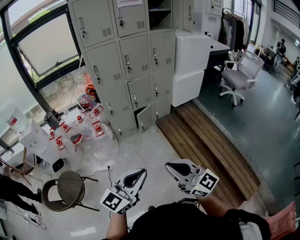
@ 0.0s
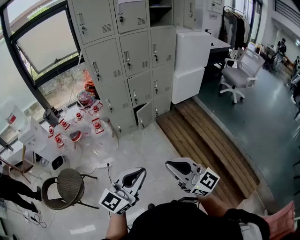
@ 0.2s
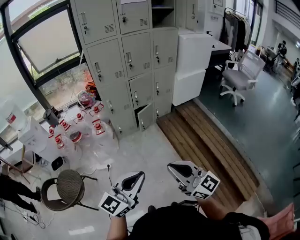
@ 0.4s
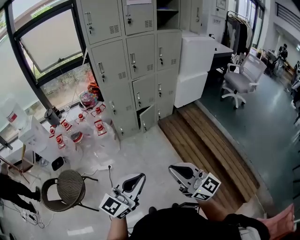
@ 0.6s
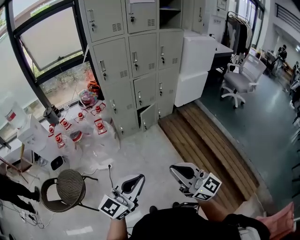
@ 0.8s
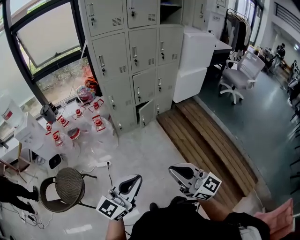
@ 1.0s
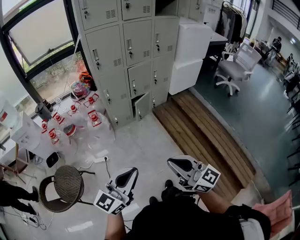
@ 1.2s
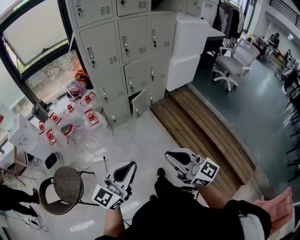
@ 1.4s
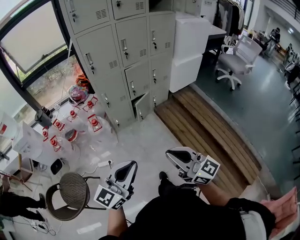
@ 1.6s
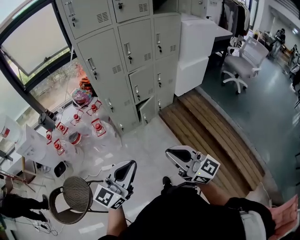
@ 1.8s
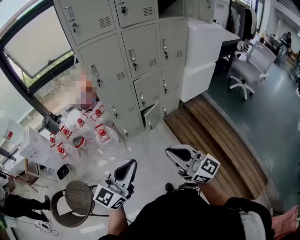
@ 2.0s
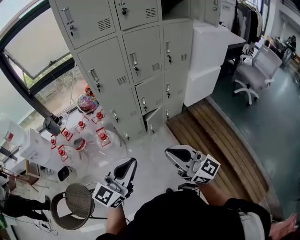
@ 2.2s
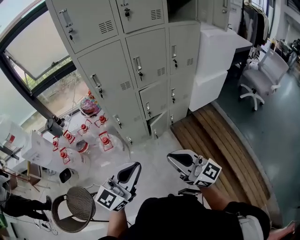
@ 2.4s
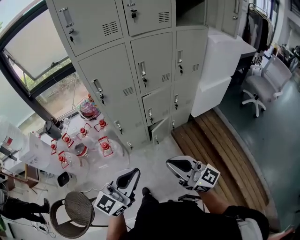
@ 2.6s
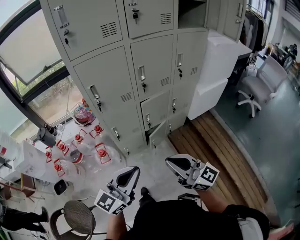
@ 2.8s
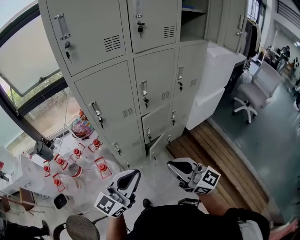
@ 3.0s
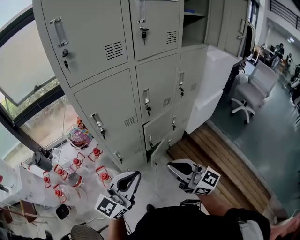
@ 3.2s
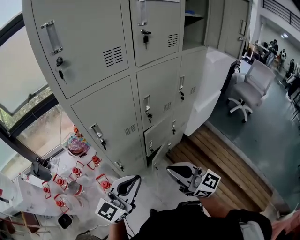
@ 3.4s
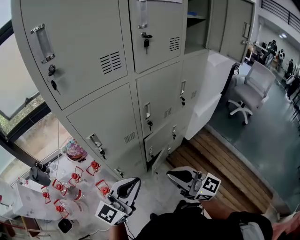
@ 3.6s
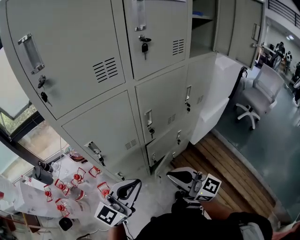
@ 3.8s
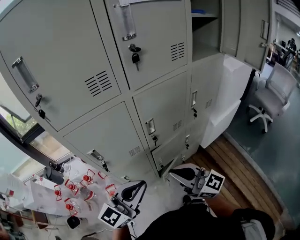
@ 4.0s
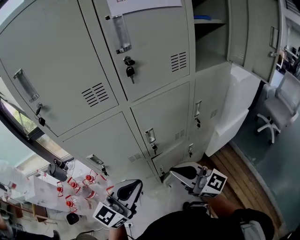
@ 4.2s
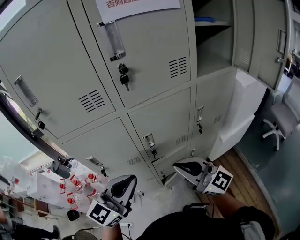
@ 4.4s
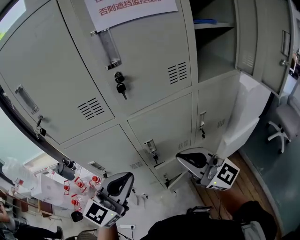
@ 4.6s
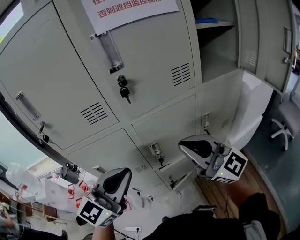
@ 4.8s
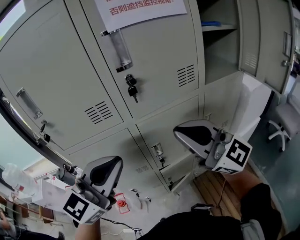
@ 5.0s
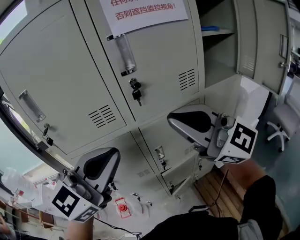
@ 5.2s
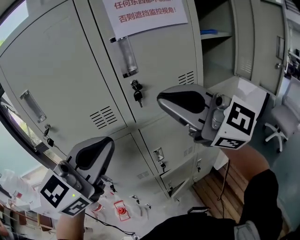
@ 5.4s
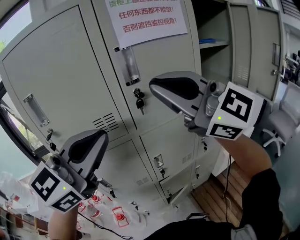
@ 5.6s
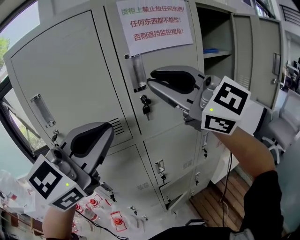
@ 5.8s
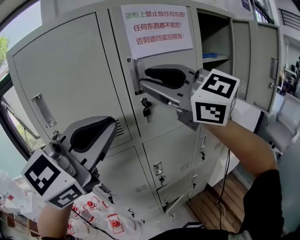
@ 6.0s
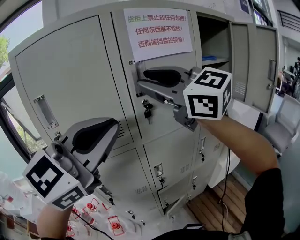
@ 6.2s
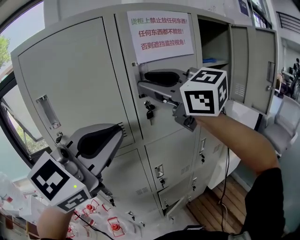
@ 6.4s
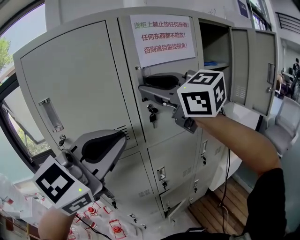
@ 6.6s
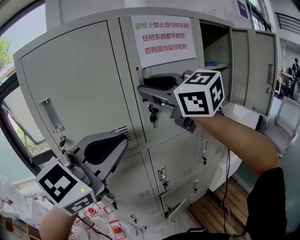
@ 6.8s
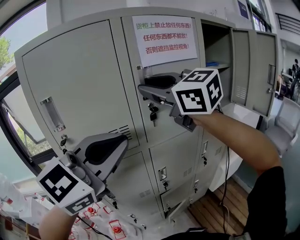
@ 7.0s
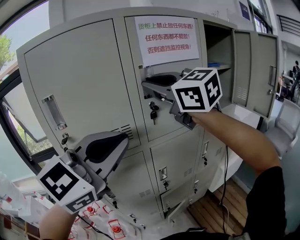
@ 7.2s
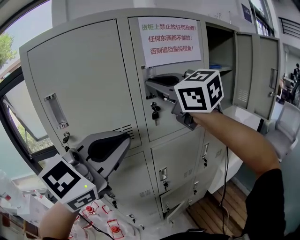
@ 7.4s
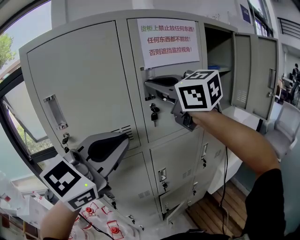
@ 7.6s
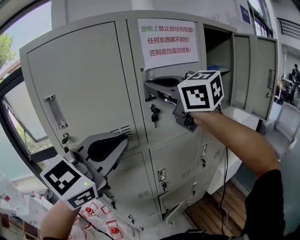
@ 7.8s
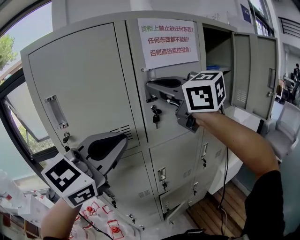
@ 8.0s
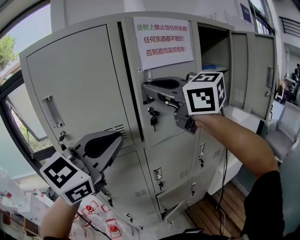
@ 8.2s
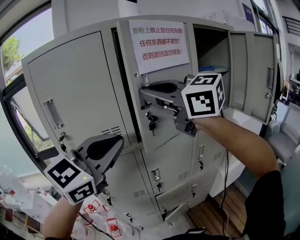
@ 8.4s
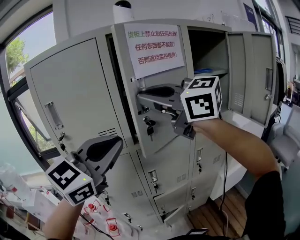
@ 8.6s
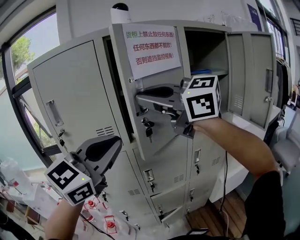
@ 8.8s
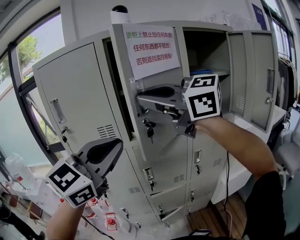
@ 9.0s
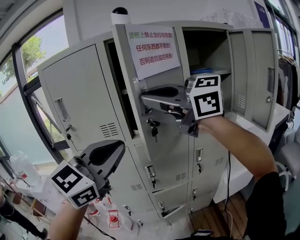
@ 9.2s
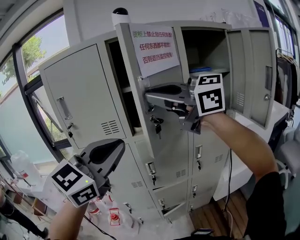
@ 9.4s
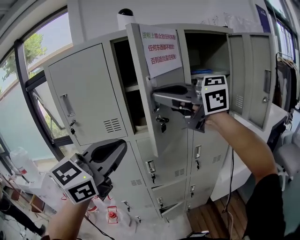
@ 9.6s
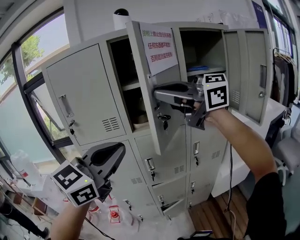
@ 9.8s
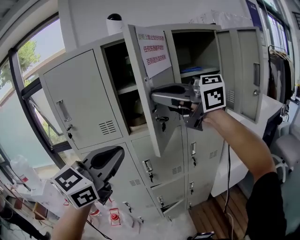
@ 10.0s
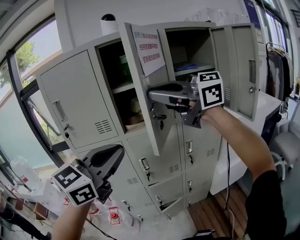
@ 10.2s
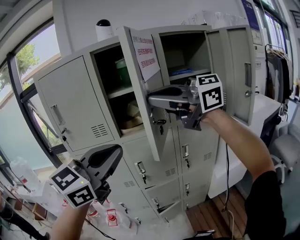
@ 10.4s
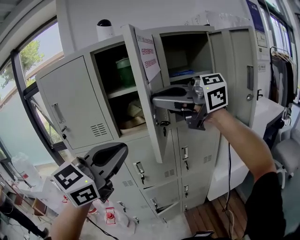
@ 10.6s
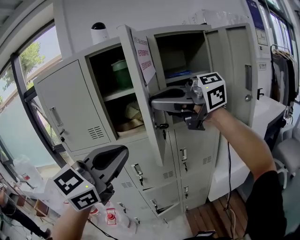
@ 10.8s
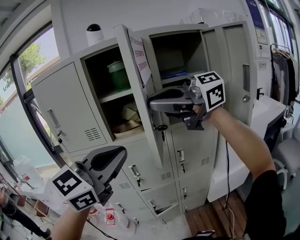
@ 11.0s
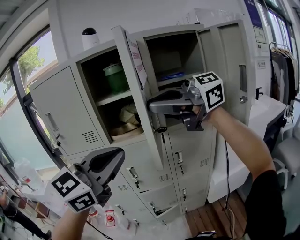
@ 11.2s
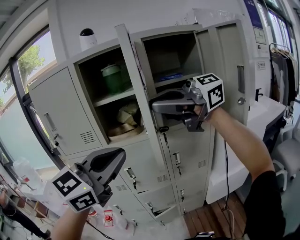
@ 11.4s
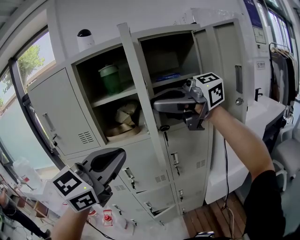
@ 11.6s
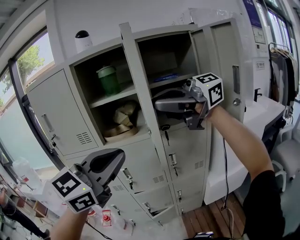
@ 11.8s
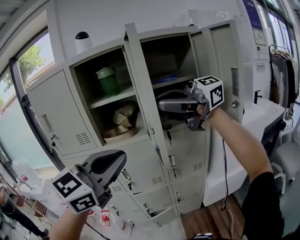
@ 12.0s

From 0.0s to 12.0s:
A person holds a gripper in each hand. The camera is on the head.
From 0.0s to 1.6s: The left gripper goes some 15 cm to the left and forward. The right gripper is displaced forward and to the left by roughly 15 cm.
From 1.6s to 3.0s: The two grippers travel together, forward, some 40 cm.
From 3.0s to 4.4s: The two grippers go some 25 cm forward.
From 4.4s to 6.0s: The grippers both shift upward by about 30 cm. The left gripper changes its angle by some 20 degrees; the right gripper turns by about 20 degrees, and opens up.
From 6.0s to 7.6s: The right gripper shifts approximately 5 cm forward.
From 7.6s to 9.0s: The left gripper travels to the right and backward by about 10 cm. The right gripper is displaced backward and to the right by about 15 cm, and changes its angle by some 30 degrees.
From 9.0s to 10.4s: The right gripper shifts by approximately 10 cm. Meanwhile the left gripper ends up roughly 10 cm from where it was.
From 10.4s to 12.0s: The right gripper ends up about 15 cm from where it was, and swivels roughly 20 degrees; the left gripper shifts by some 15 cm.

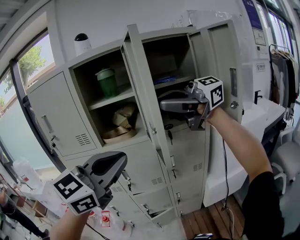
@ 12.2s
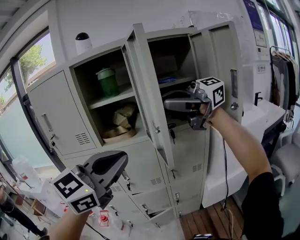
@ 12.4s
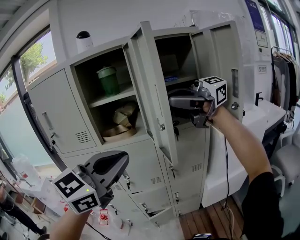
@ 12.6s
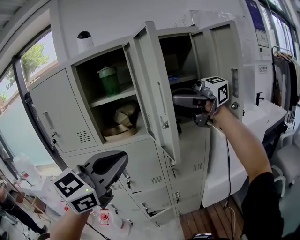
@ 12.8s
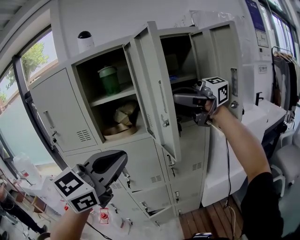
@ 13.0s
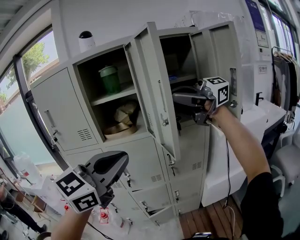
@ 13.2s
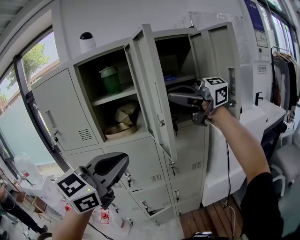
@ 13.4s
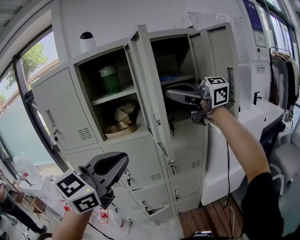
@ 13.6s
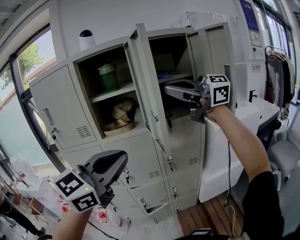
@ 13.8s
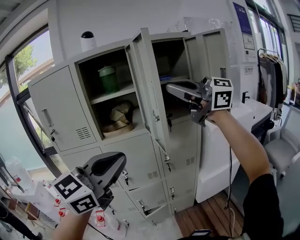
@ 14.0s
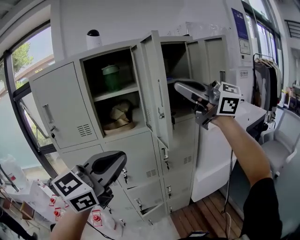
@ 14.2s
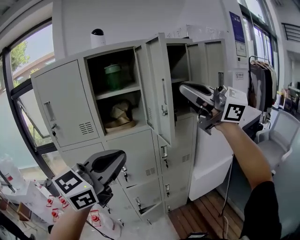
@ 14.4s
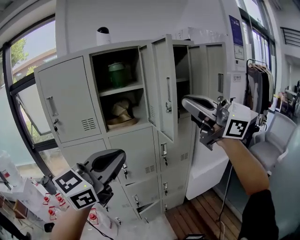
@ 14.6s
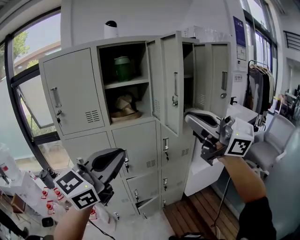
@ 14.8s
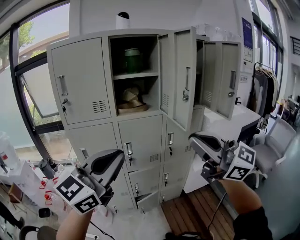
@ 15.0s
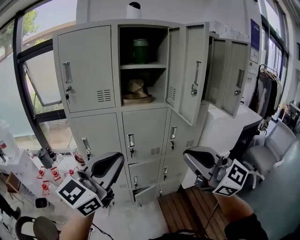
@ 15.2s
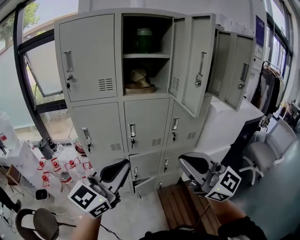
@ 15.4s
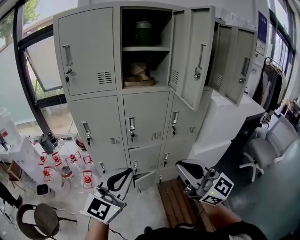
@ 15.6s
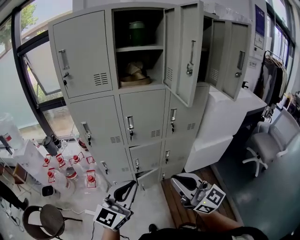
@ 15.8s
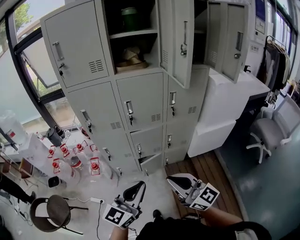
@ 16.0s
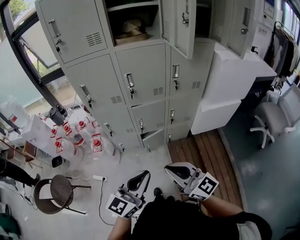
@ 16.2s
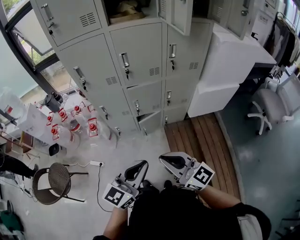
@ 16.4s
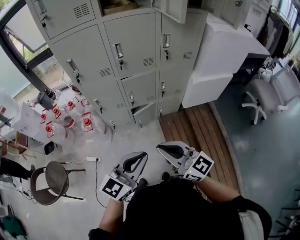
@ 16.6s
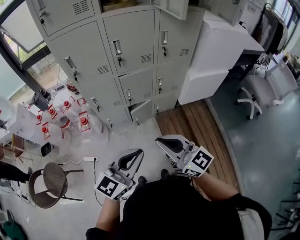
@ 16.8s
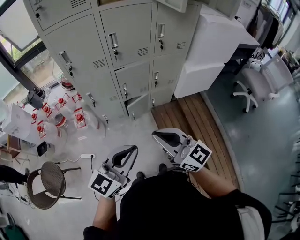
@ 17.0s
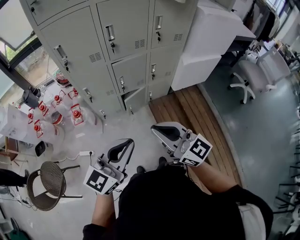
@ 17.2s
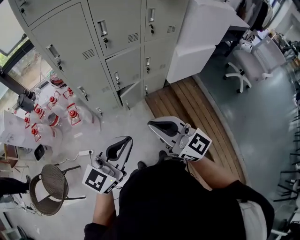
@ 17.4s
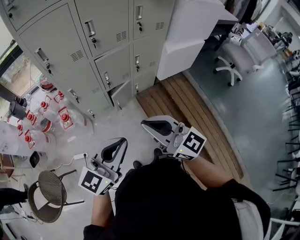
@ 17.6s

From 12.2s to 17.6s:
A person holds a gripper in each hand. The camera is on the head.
From 12.2s to 13.6s: There are only small adjustments of the grippers.
From 13.6s to 15.0s: The right gripper shifts by approximately 25 cm, and changes its angle by roughly 40 degrees. Meanwhile the left gripper moves some 20 cm.
From 15.0s to 16.2s: The right gripper is displaced downward by roughly 35 cm; the left gripper moves downward and backward, some 35 cm, and swivels about 20 degrees.
From 16.2s to 17.6s: The left gripper heads to the left and backward, covering some 10 cm. The right gripper shifts roughly 10 cm to the left.

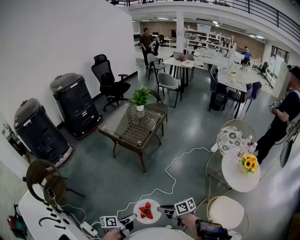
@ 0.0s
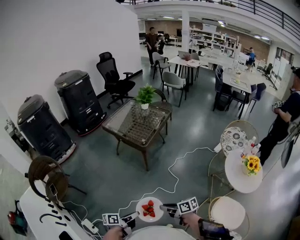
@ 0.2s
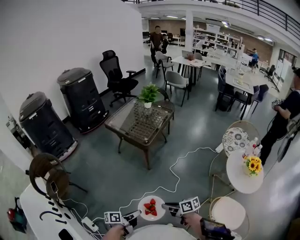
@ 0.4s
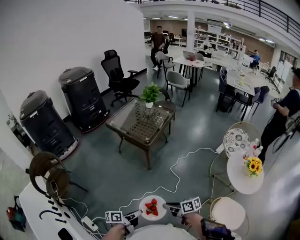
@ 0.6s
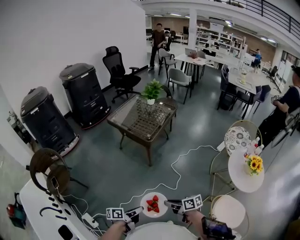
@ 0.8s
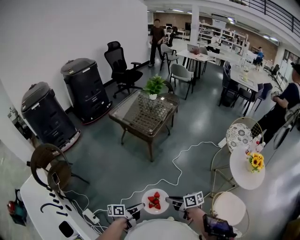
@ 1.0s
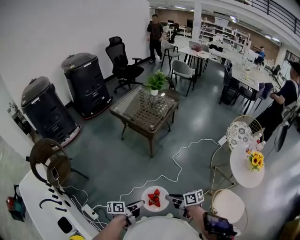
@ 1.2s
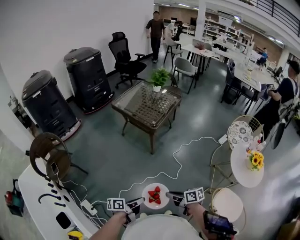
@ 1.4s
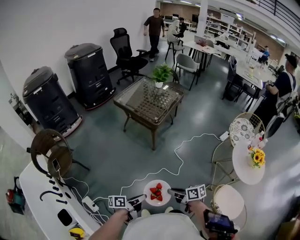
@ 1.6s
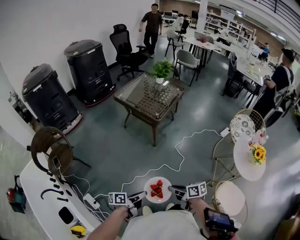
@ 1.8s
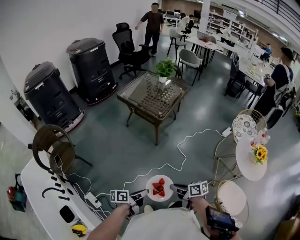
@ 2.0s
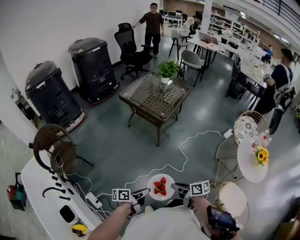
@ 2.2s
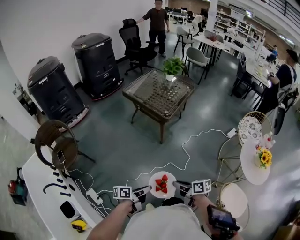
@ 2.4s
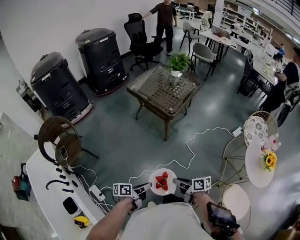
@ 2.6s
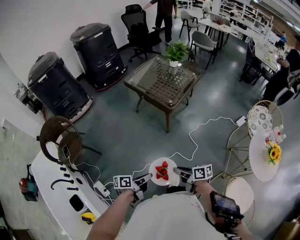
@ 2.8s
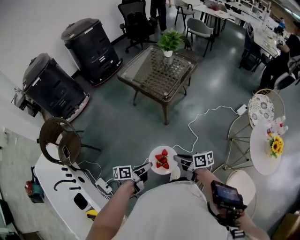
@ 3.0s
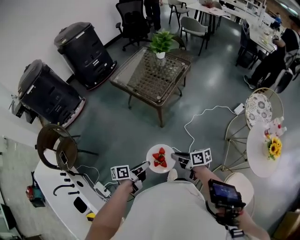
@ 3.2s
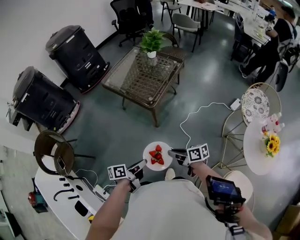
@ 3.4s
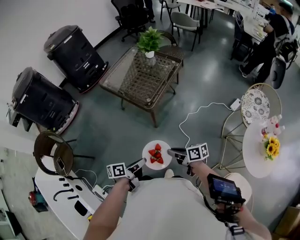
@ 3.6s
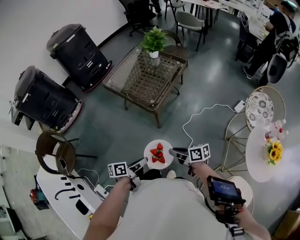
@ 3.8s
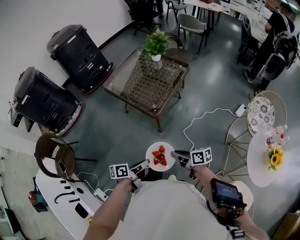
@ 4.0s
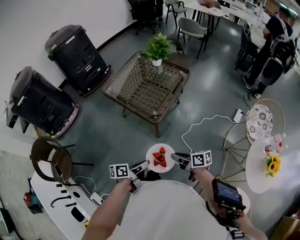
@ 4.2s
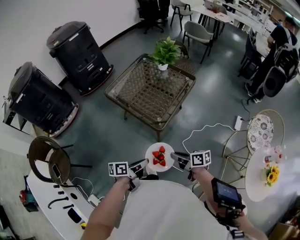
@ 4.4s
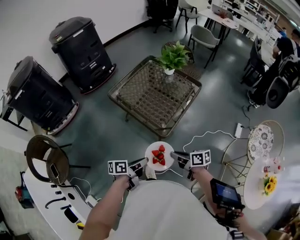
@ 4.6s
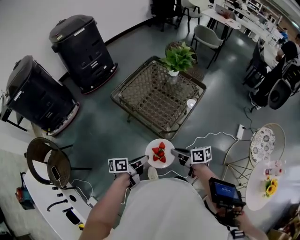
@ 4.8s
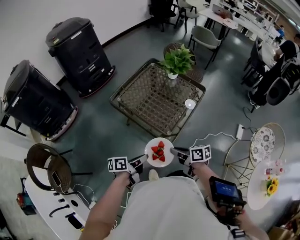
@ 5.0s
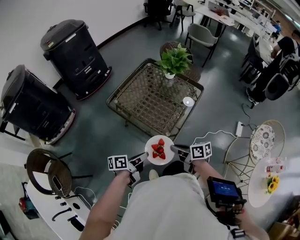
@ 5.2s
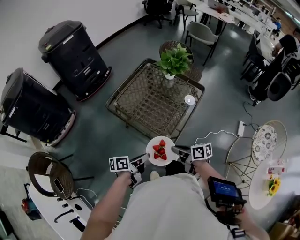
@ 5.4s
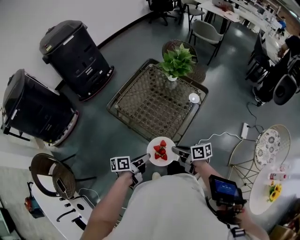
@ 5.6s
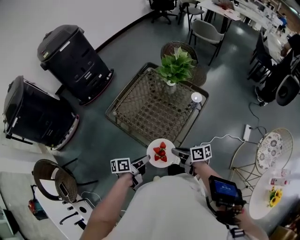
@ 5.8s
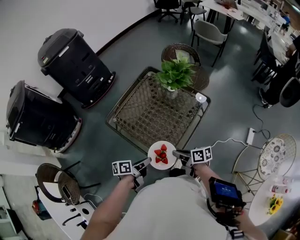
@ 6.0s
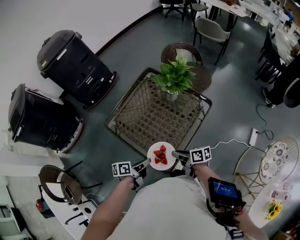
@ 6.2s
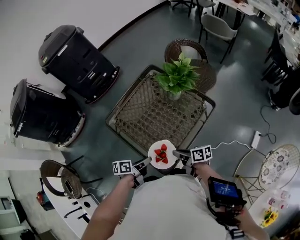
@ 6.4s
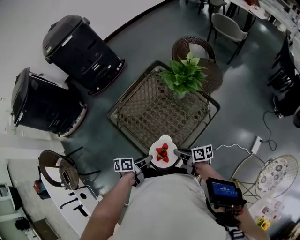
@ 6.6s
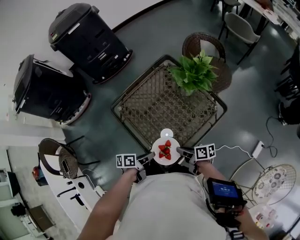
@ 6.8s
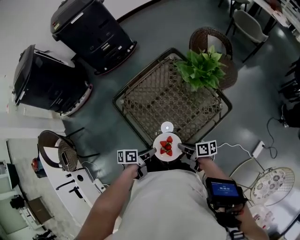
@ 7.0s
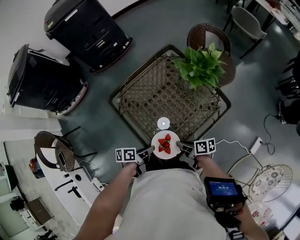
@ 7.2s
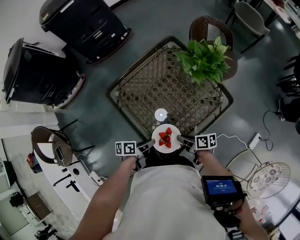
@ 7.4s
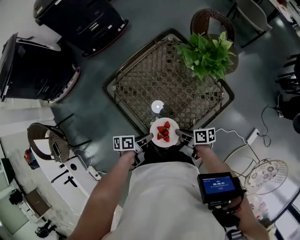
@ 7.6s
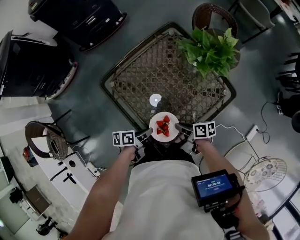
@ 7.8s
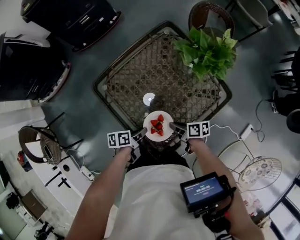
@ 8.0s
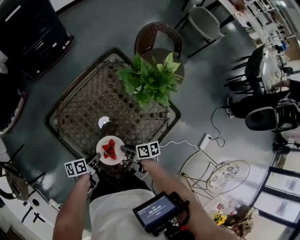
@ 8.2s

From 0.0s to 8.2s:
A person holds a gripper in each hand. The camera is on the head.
From 1.6s to 3.2s: The right gripper changes place by roughly 20 cm.
From 3.2s to 5.0s: The right gripper changes place by roughly 35 cm.
From 5.0s to 6.6s: The right gripper ends up some 25 cm from where it was.
From 6.6s to 8.2s: The right gripper shifts about 10 cm downward.
